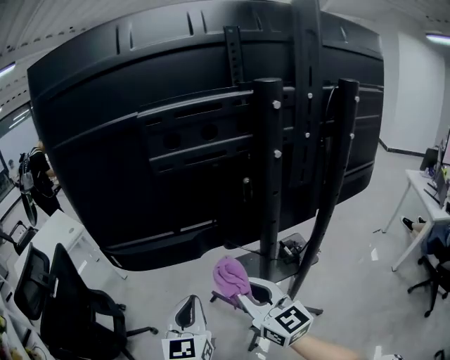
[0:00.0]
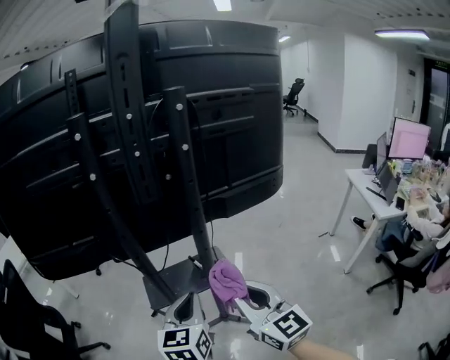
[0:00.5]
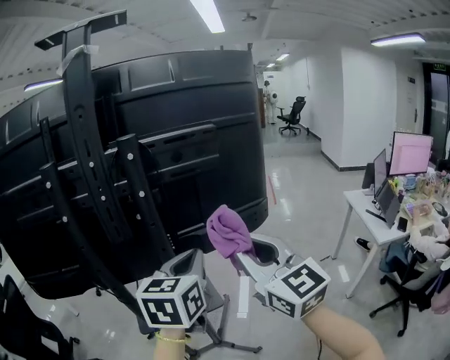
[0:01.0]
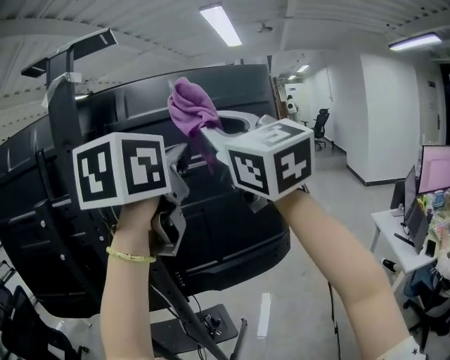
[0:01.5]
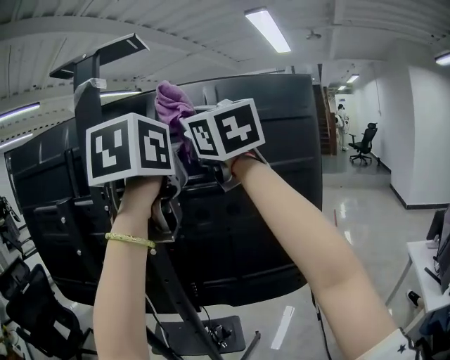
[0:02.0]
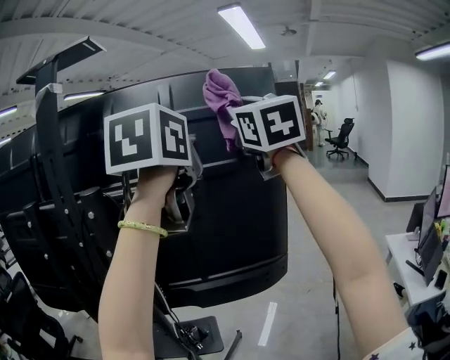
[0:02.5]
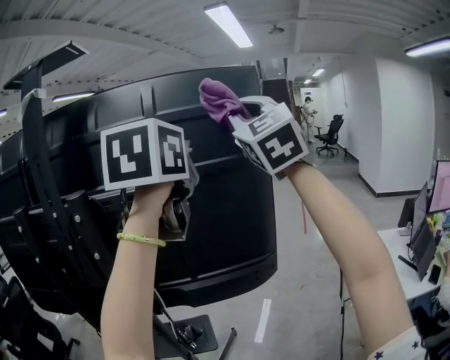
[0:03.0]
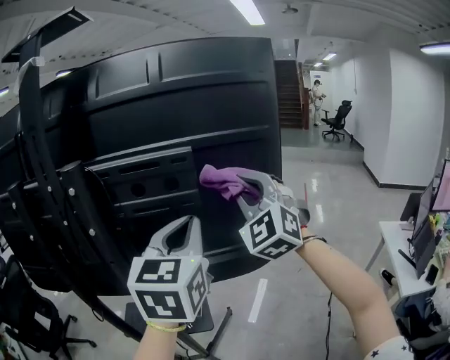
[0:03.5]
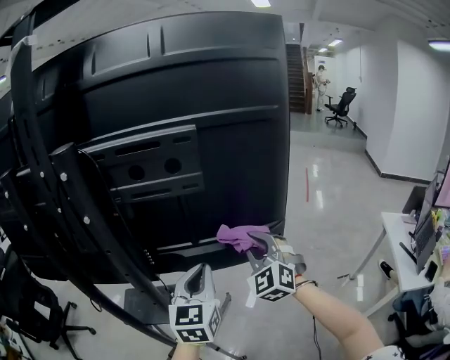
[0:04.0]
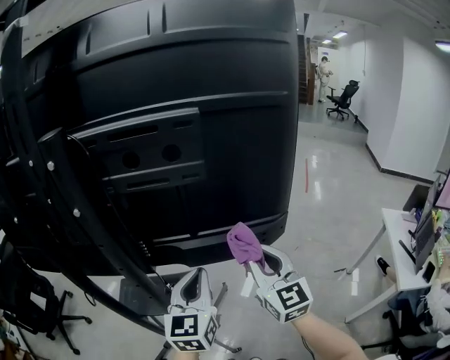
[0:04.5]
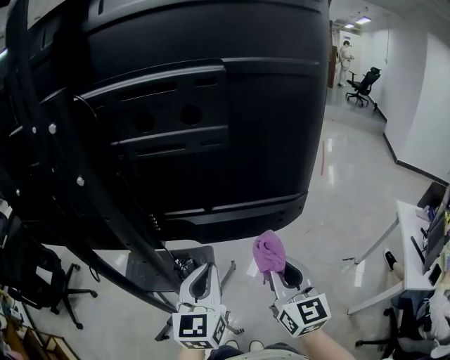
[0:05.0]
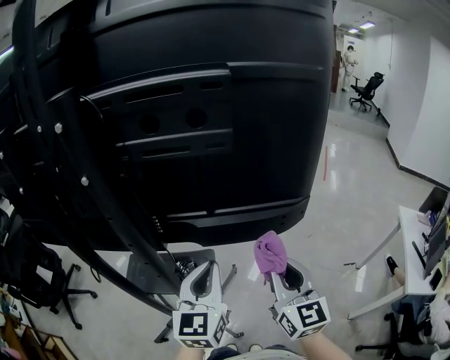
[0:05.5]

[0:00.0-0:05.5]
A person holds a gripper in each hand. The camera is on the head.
0:00.0 to 0:02.0: Both grippers are carried to the right, roughly 50 cm. Both grippers move upward, roughly 50 cm. The right gripper changes its angle by roughly 30 degrees.
0:02.0 to 0:03.5: Both grippers travel together downward and to the right, roughly 30 cm. The right gripper changes its angle by approximately 50 degrees.
0:03.5 to 0:05.5: The right gripper travels downward and backward by some 30 cm, and rotates around the line of its fingers by some 60 degrees, clockwise from behind. Meanwhile the left gripper shifts some 25 cm downward.

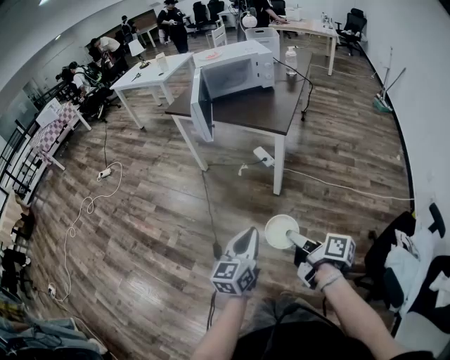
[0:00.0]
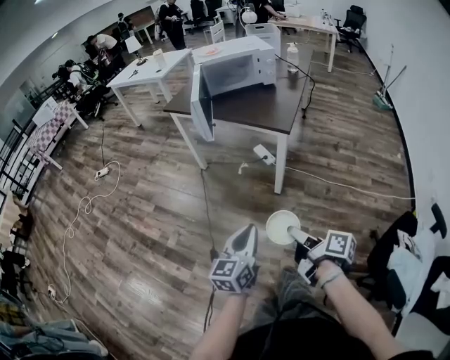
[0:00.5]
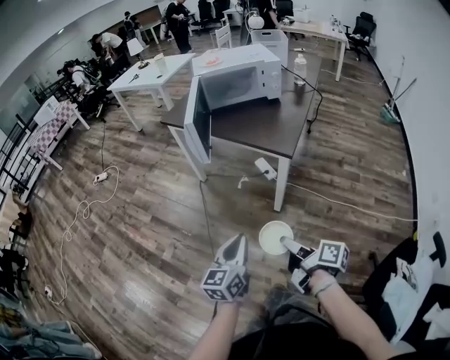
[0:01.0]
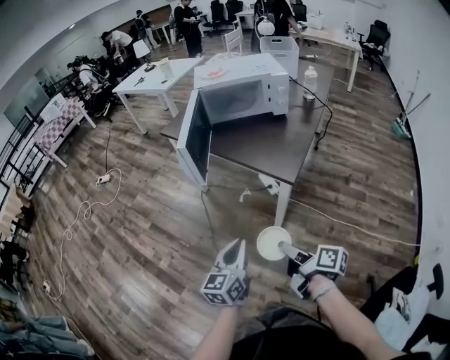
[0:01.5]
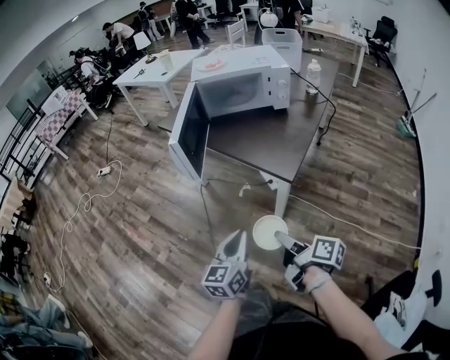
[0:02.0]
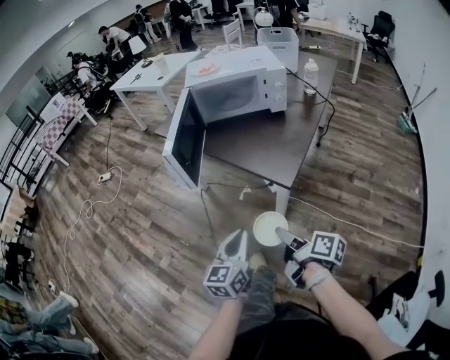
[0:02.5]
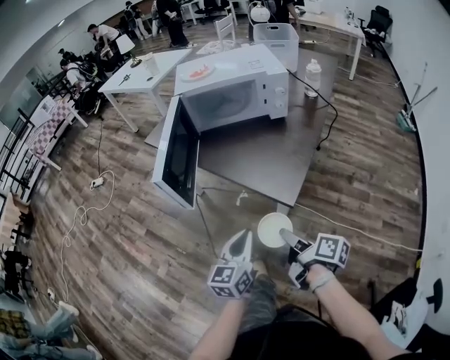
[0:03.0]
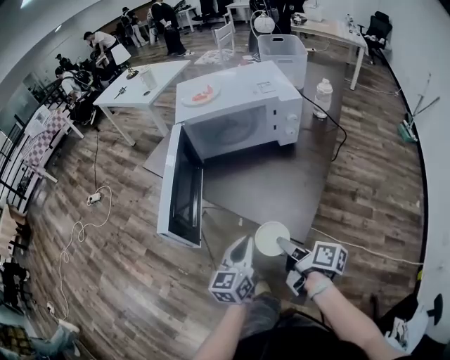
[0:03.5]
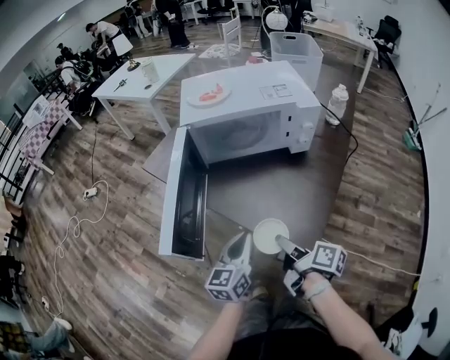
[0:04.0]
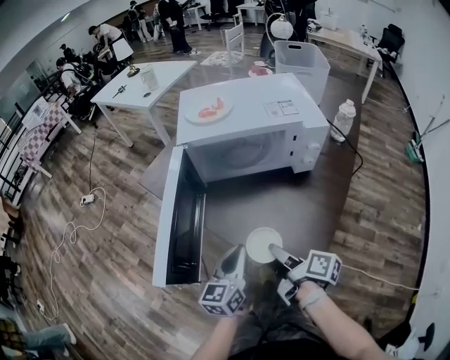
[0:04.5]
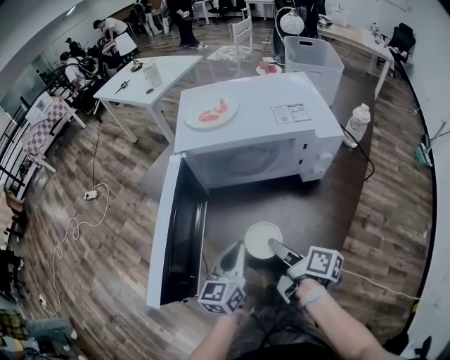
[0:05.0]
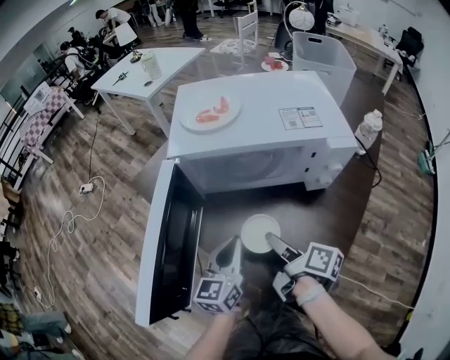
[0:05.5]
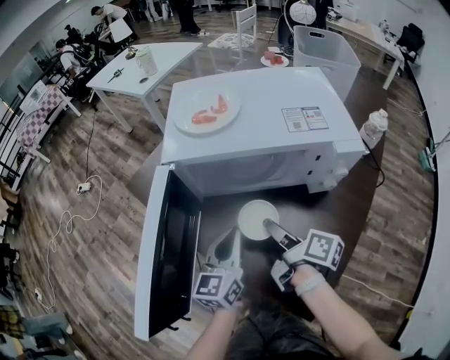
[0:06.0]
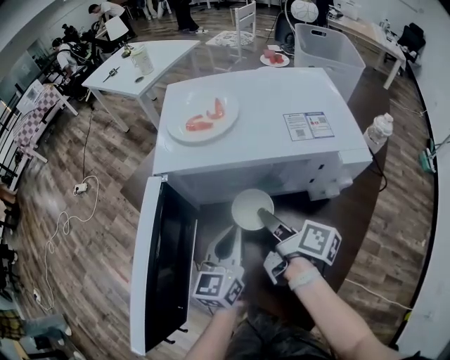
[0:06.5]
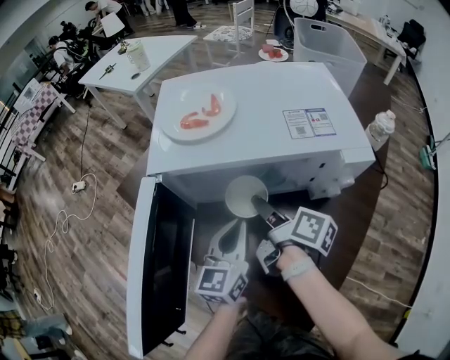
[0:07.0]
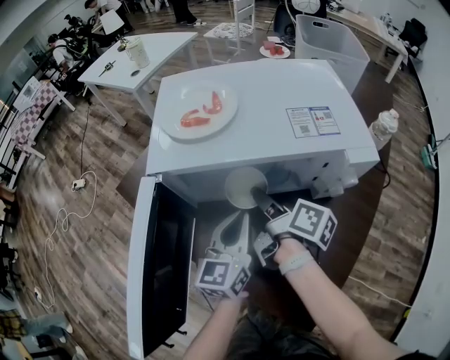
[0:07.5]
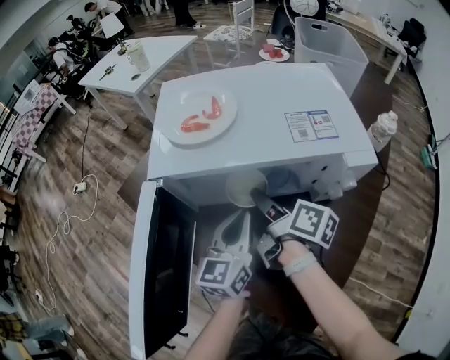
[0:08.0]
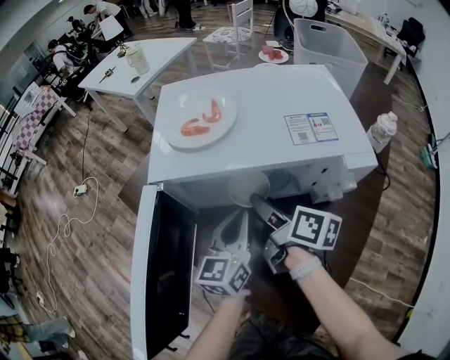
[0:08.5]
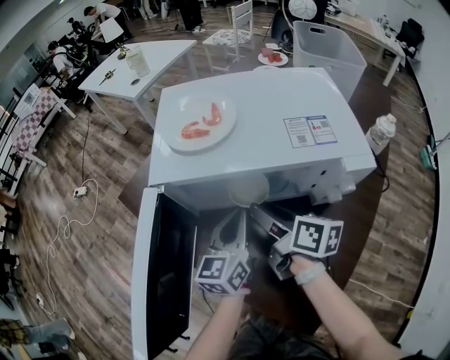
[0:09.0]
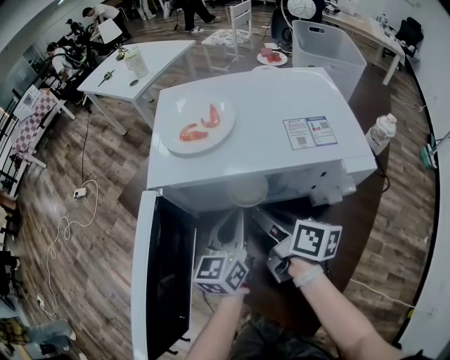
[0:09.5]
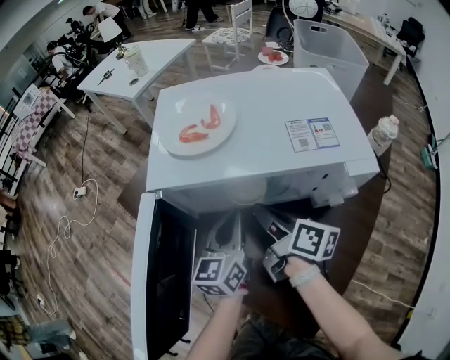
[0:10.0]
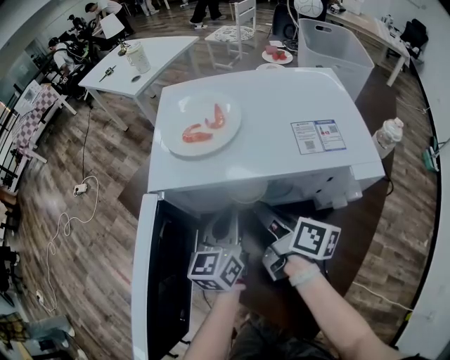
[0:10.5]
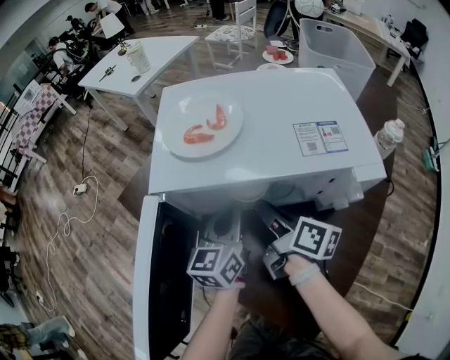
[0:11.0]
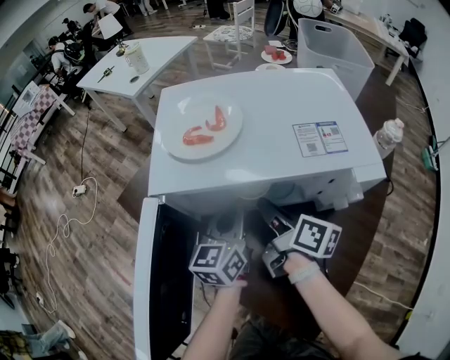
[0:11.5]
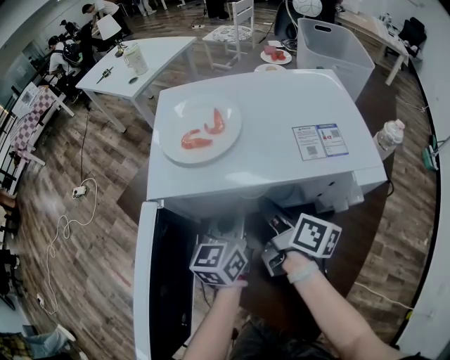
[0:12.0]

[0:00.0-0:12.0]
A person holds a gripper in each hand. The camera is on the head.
0:00.0 to 0:02.0: Both grippers move forward, roughly 25 cm.
0:02.0 to 0:04.0: The grippers both shift forward by approximately 30 cm.
0:04.0 to 0:06.0: Both grippers move forward, about 20 cm.
0:06.0 to 0:08.0: The right gripper travels forward by approximately 10 cm. Meanwhile the left gripper is displaced forward by some 5 cm.
0:08.0 to 0:10.0: The right gripper closes its fingers.
0:10.0 to 0:12.0: There are only small adjustments of the grippers.

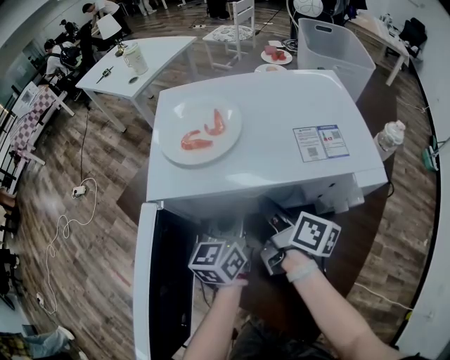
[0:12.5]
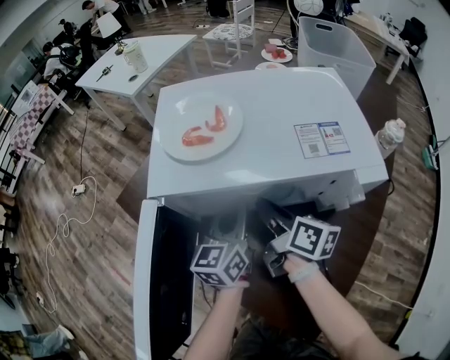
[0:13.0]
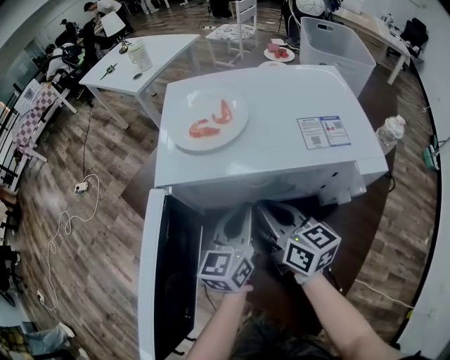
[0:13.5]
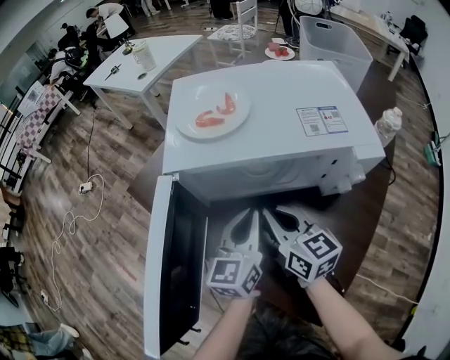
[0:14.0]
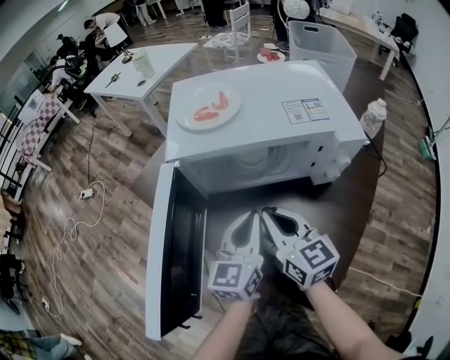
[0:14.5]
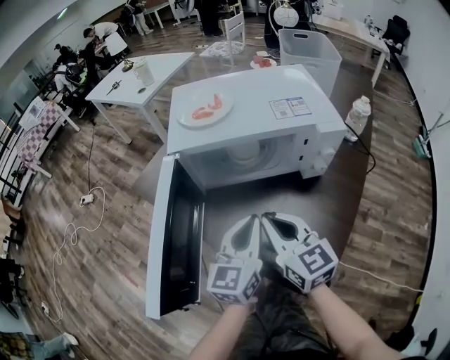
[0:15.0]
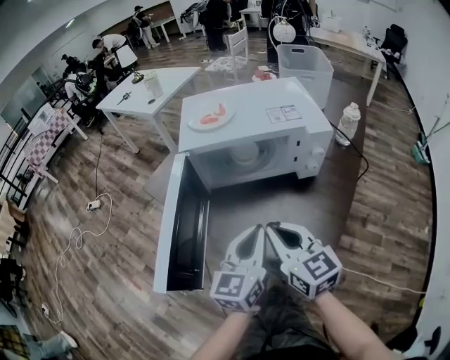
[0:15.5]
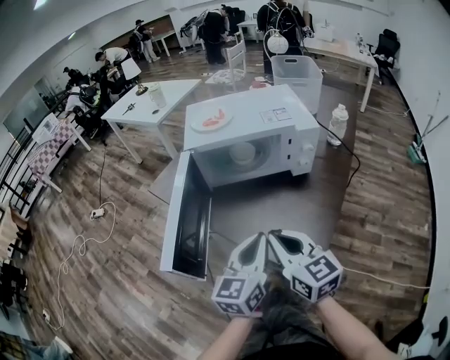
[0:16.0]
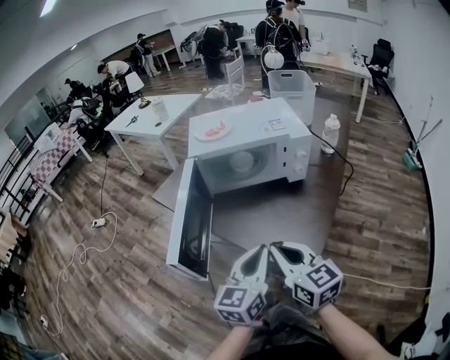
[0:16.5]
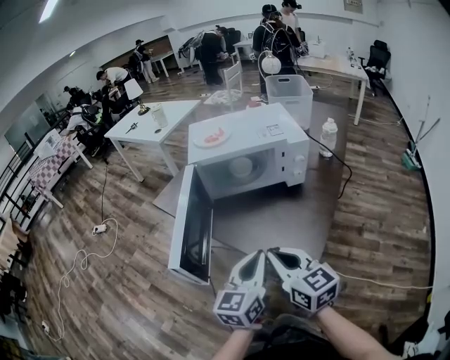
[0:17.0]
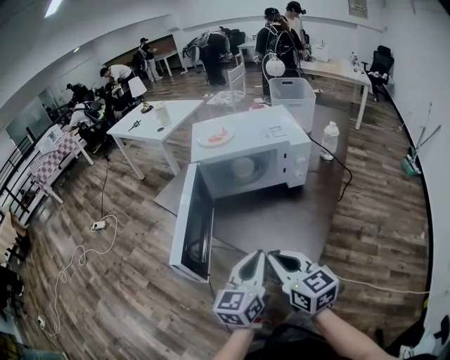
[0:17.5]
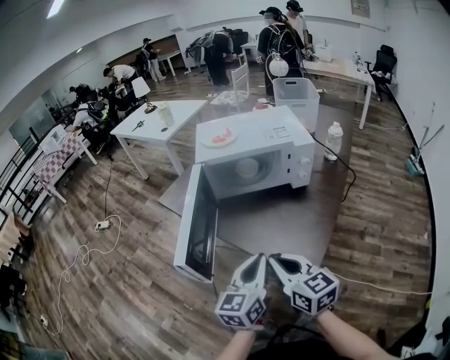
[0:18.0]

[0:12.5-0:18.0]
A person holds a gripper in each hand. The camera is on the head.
0:12.5 to 0:14.5: The left gripper travels backward by approximately 15 cm, while the right gripper is displaced backward and upward by about 15 cm, and rotates around the line of its fingers by some 50 degrees, counterclockwise from behind.
0:14.5 to 0:16.0: Both grippers move backward, roughly 15 cm.
0:16.0 to 0:18.0: The two grippers go approximately 5 cm backward.

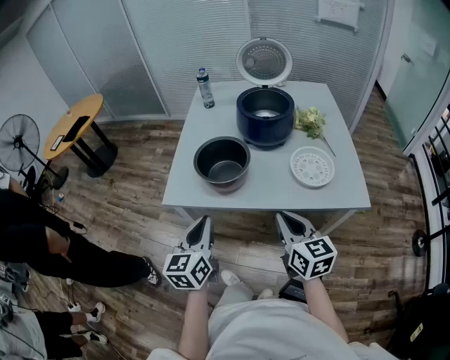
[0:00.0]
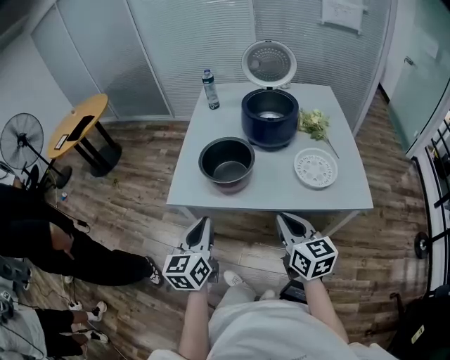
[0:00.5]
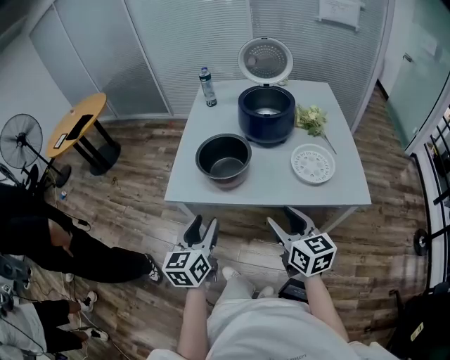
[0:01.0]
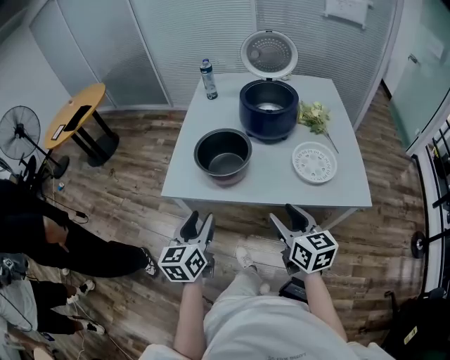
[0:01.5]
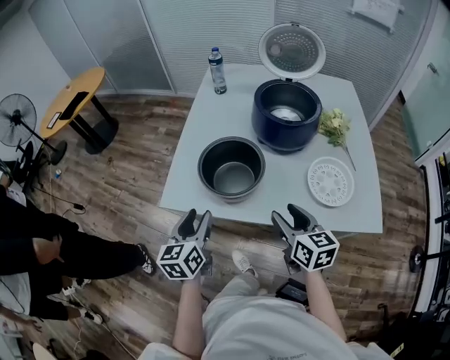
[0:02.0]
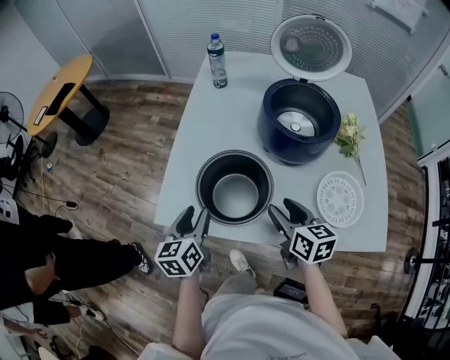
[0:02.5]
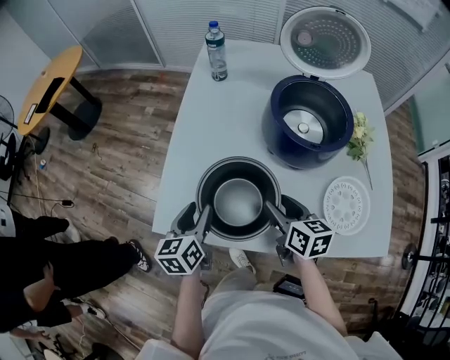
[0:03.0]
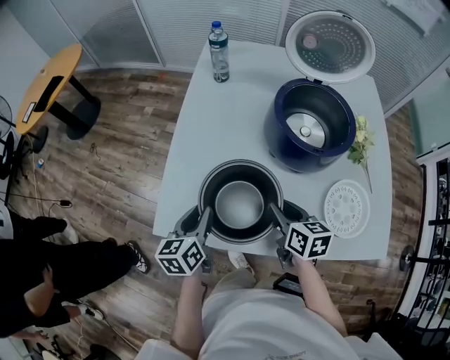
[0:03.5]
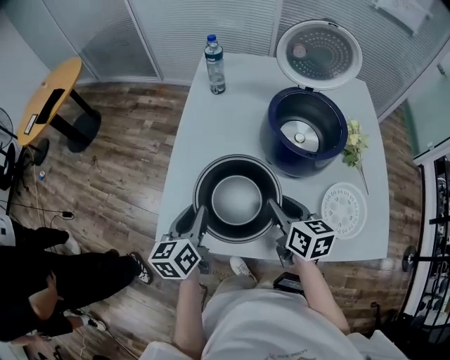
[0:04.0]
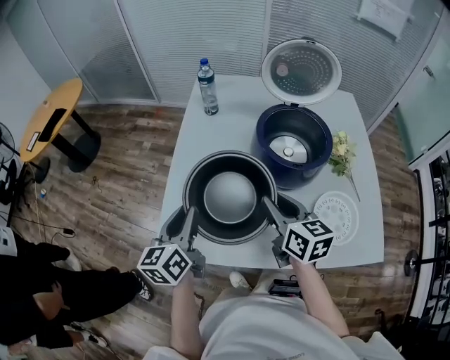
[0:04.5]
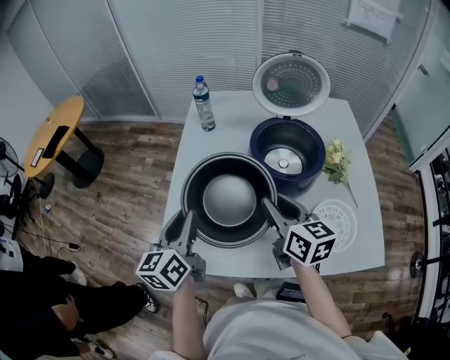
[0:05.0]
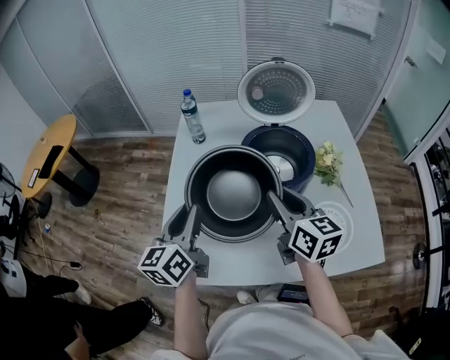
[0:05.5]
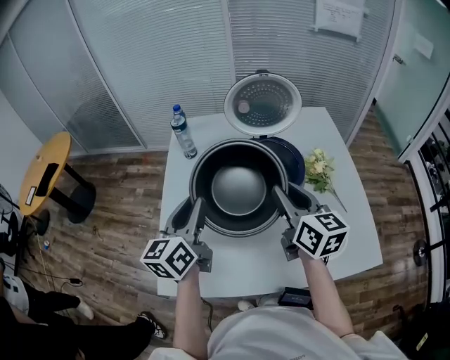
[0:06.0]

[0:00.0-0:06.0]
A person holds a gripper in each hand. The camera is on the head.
0:00.0 to 0:02.0: The two grippers go roughly 15 cm forward and downward. The left gripper opens up. The right gripper opens up.
0:02.0 to 0:04.0: The two grippers go some 20 cm forward. The left gripper closes its fingers, while the right gripper closes up.
0:04.0 to 0:06.0: The left gripper is displaced upward, to the right and forward by some 25 cm, and swivels some 20 degrees. The right gripper is displaced upward and to the right by approximately 20 cm, and swivels some 30 degrees.
